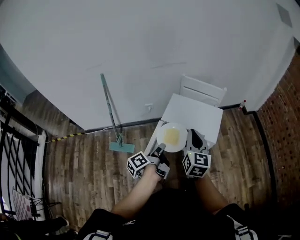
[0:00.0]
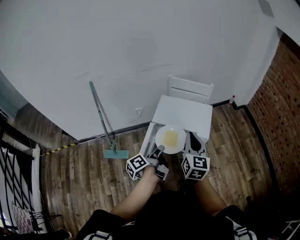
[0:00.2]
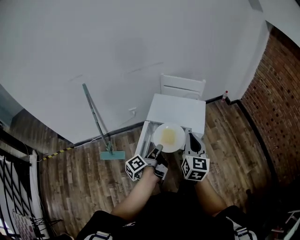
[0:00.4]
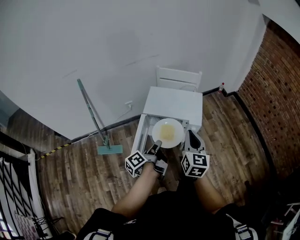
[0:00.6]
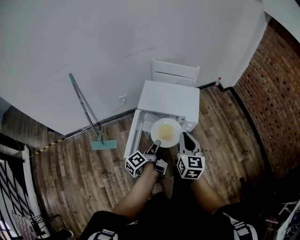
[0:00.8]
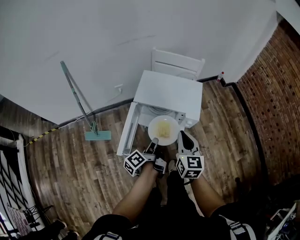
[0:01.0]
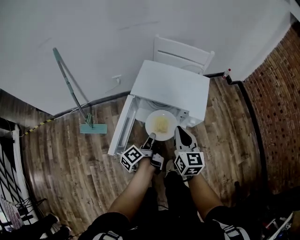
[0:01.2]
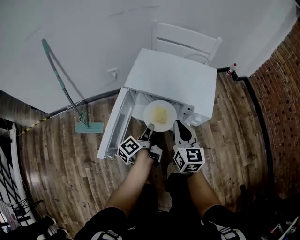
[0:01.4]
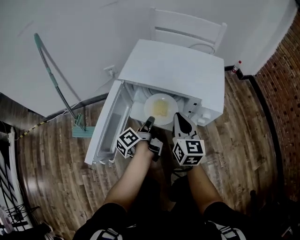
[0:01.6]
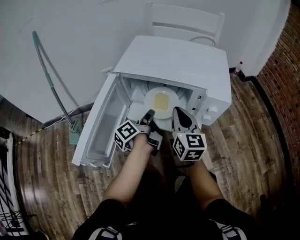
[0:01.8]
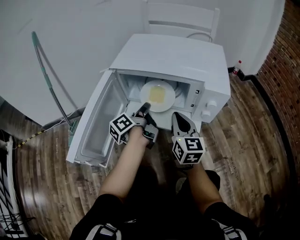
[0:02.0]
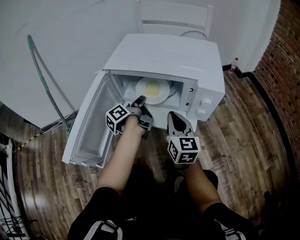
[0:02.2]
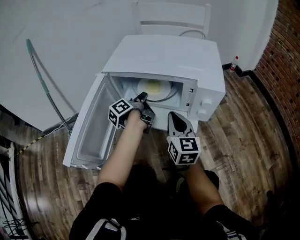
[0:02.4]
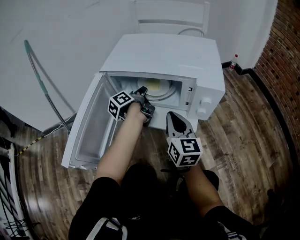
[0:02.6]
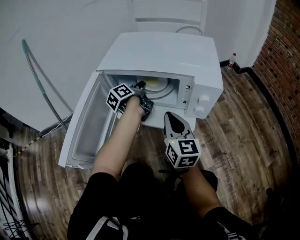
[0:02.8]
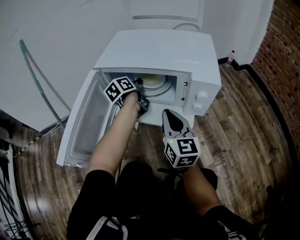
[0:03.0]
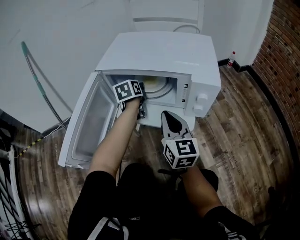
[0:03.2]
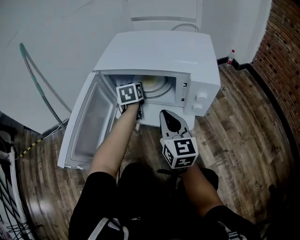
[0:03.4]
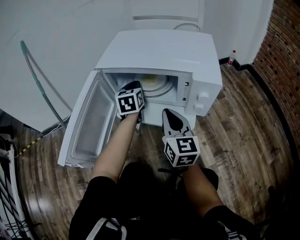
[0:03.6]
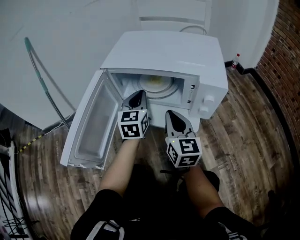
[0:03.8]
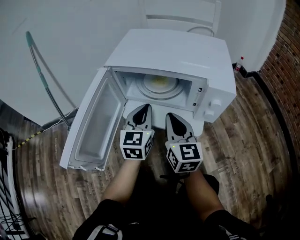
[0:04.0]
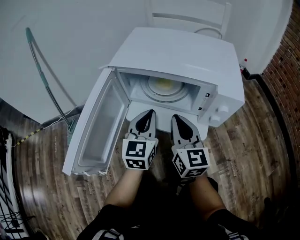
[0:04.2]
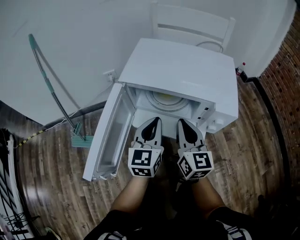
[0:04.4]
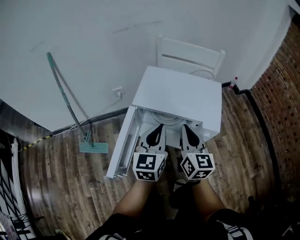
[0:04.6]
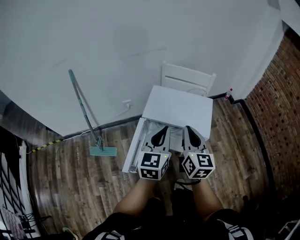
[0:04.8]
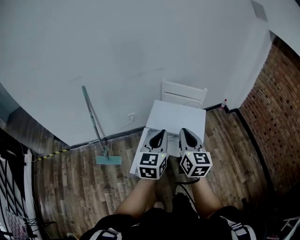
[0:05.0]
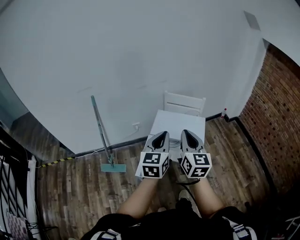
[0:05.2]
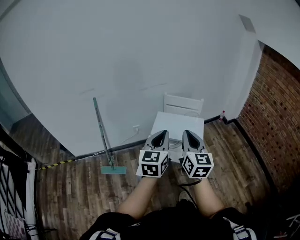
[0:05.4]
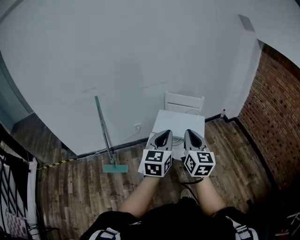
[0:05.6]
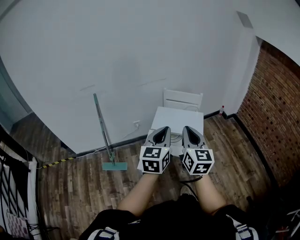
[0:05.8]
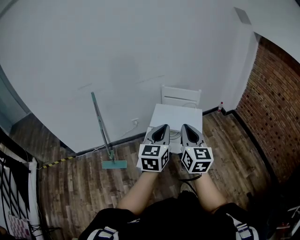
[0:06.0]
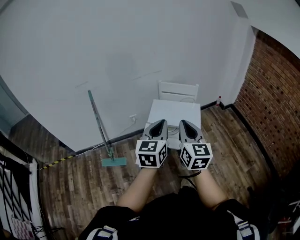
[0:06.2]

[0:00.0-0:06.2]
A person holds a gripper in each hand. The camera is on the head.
0:00.0 to 0:01.6: The two grippers go about 40 cm downward.
0:01.6 to 0:03.2: The right gripper moves downward, roughly 5 cm; the left gripper moves forward, about 20 cm, rotates around the line of its fingers by approximately 60 degrees, clockwise from behind, and opens.
0:03.2 to 0:04.6: The right gripper heads upward, covering some 20 cm. The left gripper heads upward and backward, covering approximately 35 cm, turns by roughly 30 degrees, and closes its fingers.
0:04.6 to 0:06.2: Both grippers travel together upward and backward, some 40 cm.

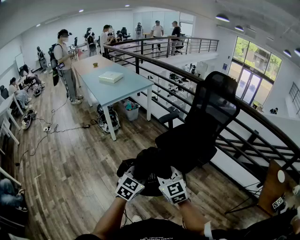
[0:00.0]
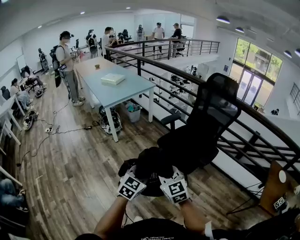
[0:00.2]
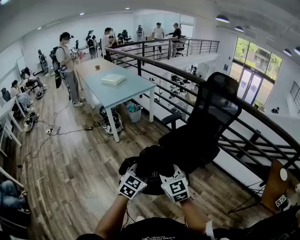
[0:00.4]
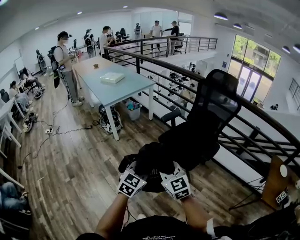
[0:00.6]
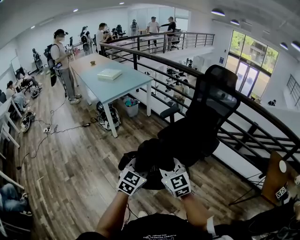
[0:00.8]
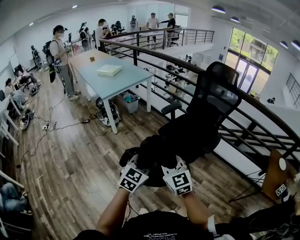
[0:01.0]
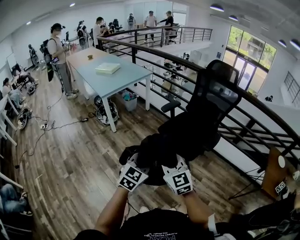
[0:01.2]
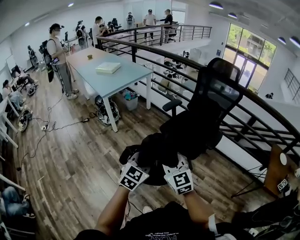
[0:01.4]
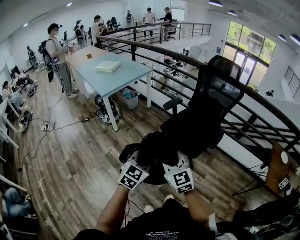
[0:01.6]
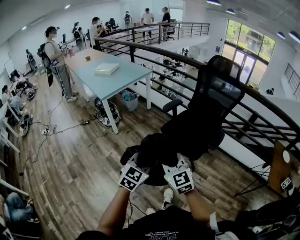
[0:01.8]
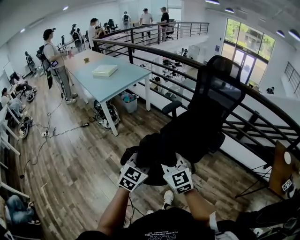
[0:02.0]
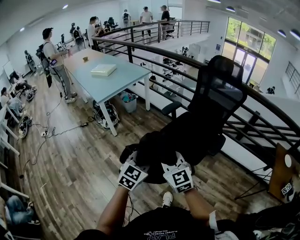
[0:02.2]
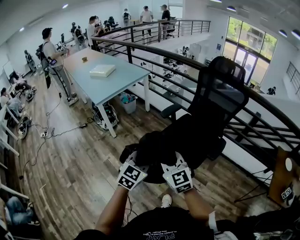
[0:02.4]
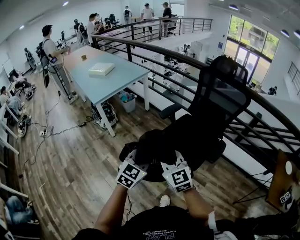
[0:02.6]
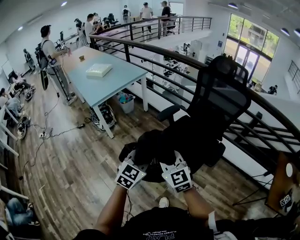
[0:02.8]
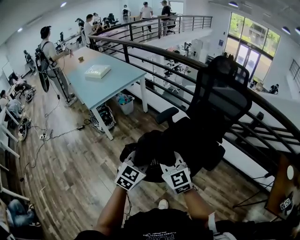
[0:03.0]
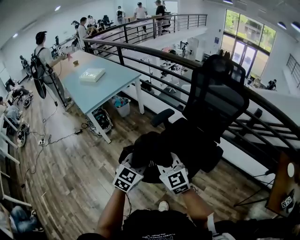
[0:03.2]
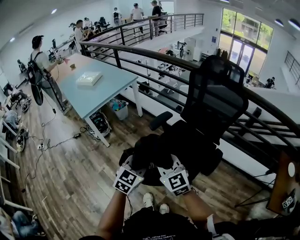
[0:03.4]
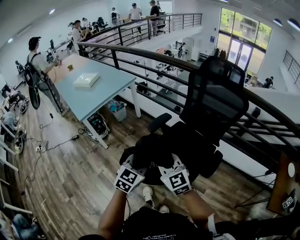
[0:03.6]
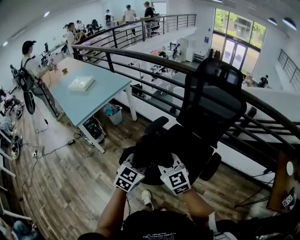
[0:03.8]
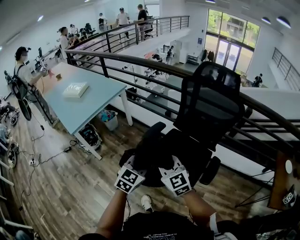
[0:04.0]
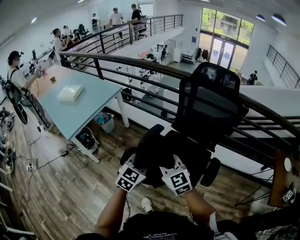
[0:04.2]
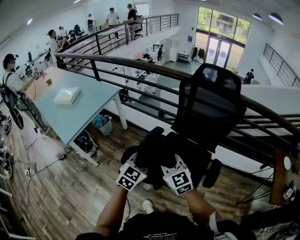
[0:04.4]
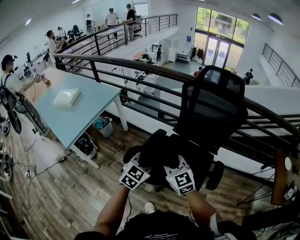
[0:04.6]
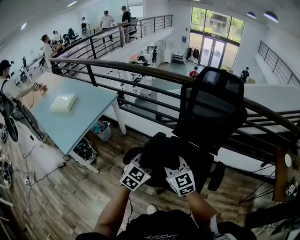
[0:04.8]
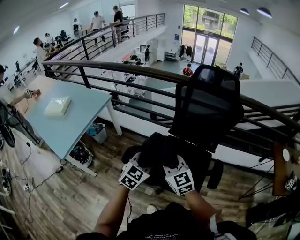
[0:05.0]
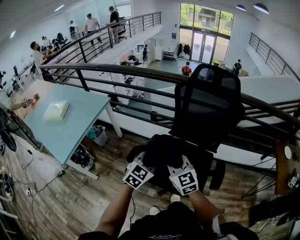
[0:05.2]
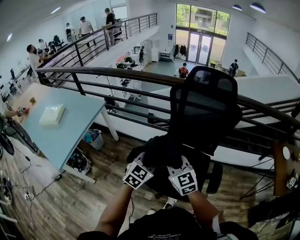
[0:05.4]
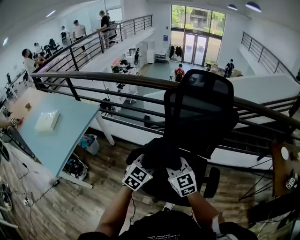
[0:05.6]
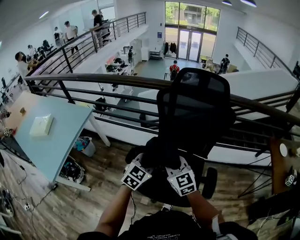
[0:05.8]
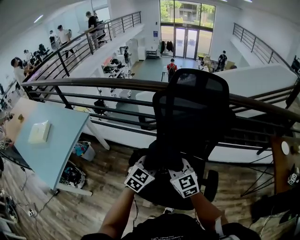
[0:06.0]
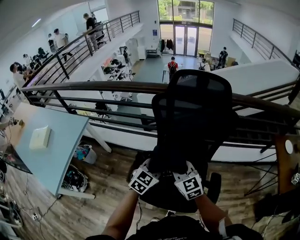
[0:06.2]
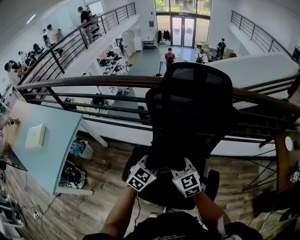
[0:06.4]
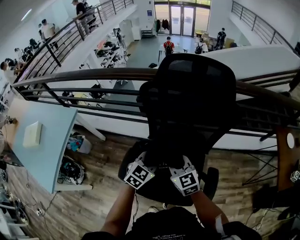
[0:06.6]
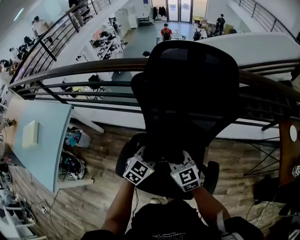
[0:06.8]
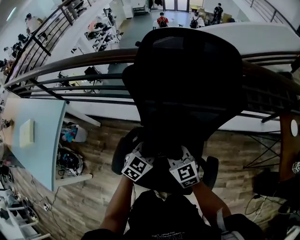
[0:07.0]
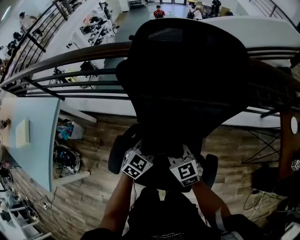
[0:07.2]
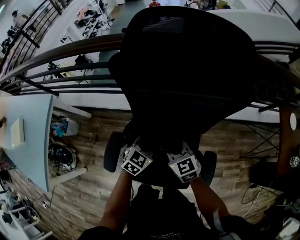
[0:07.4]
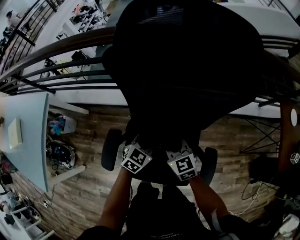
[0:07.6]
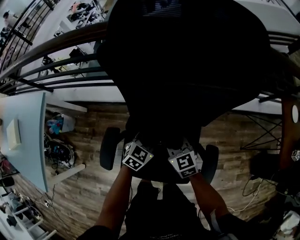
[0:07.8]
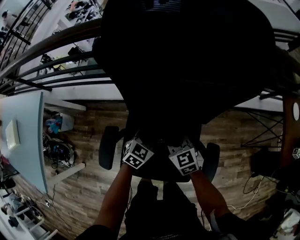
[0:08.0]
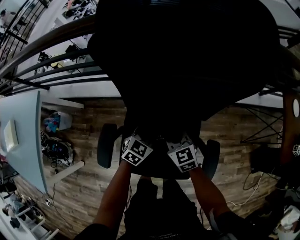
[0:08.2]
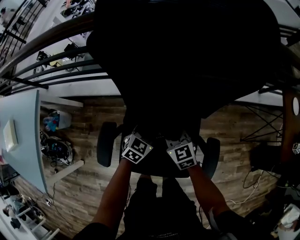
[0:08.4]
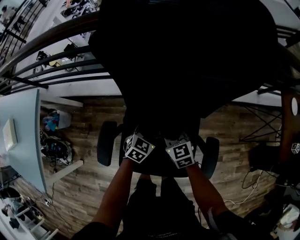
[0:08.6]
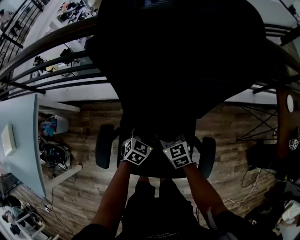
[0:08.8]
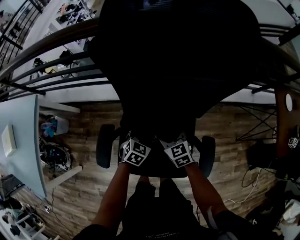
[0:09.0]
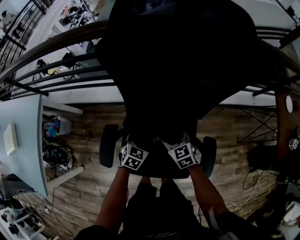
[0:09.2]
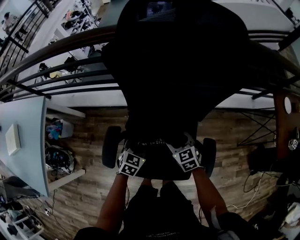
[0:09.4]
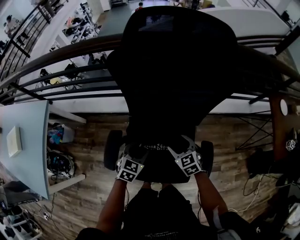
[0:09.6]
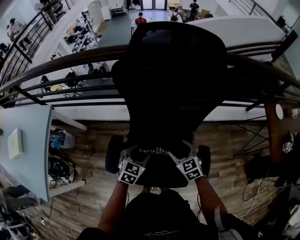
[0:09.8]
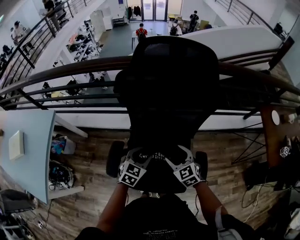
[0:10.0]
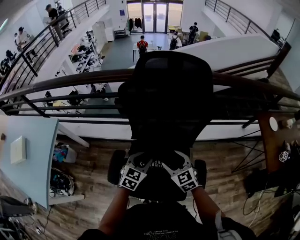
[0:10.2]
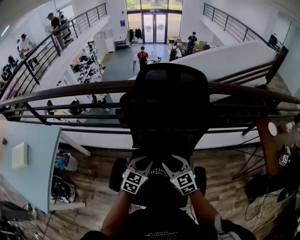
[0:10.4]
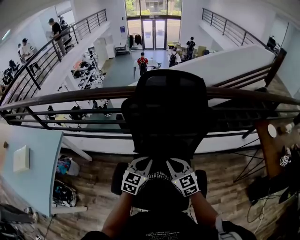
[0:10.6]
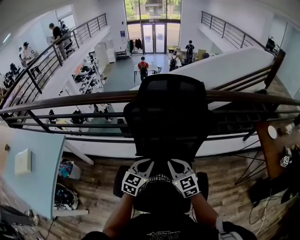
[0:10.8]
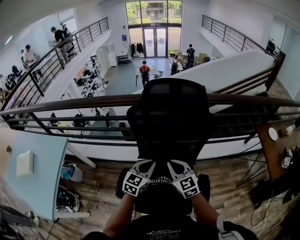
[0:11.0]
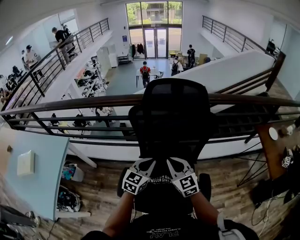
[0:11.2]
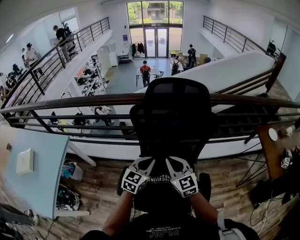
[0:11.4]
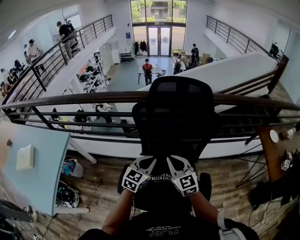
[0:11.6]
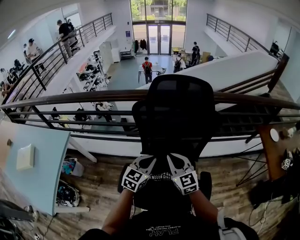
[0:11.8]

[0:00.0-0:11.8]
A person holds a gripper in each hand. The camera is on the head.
0:00.0 to 0:01.4: Both grippers move to the left, about 5 cm.
0:01.4 to 0:03.0: Both grippers move forward, roughly 25 cm.
0:03.0 to 0:04.4: The two grippers go about 20 cm forward.
0:04.4 to 0:06.0: The right gripper is displaced forward and to the right by about 25 cm. Meanwhile the left gripper is displaced forward by some 20 cm.
0:06.0 to 0:07.4: Both grippers travel together downward, forward and to the right, about 25 cm.
0:07.4 to 0:08.8: The two grippers go roughly 10 cm downward. The right gripper opens up.
0:08.8 to 0:10.4: The grippers both shift upward by approximately 20 cm. The left gripper changes its angle by about 20 degrees, and opens, then closes again.
0:10.4 to 0:11.8: The grippers both shift upward by some 5 cm. The right gripper closes its fingers.

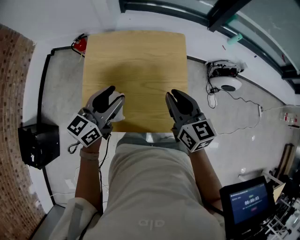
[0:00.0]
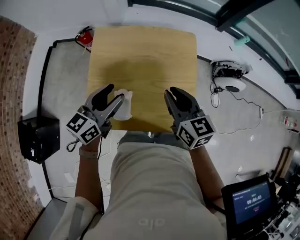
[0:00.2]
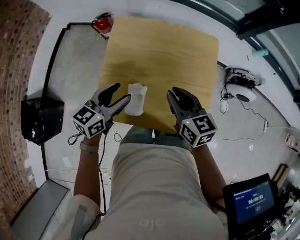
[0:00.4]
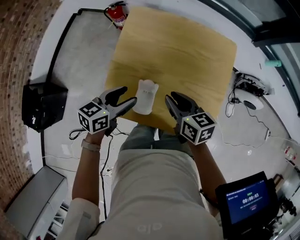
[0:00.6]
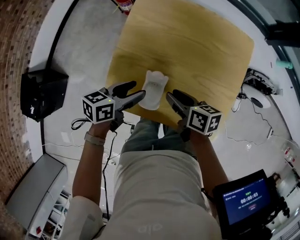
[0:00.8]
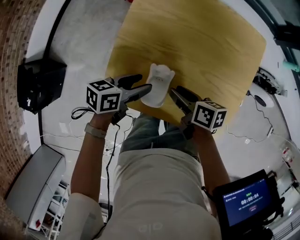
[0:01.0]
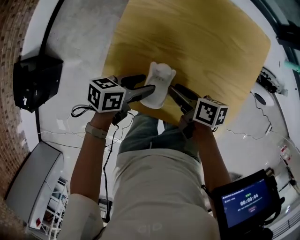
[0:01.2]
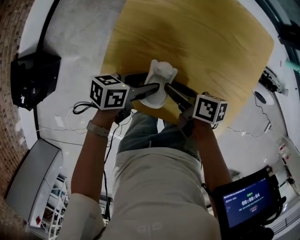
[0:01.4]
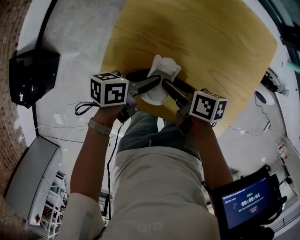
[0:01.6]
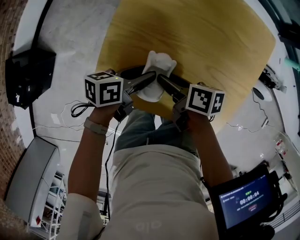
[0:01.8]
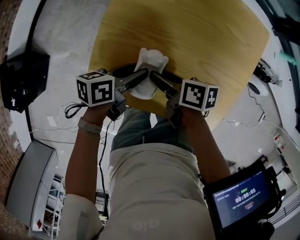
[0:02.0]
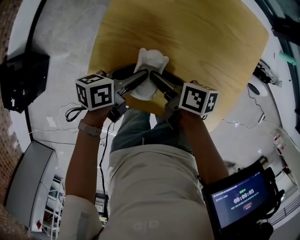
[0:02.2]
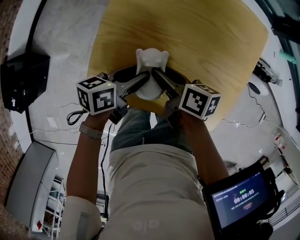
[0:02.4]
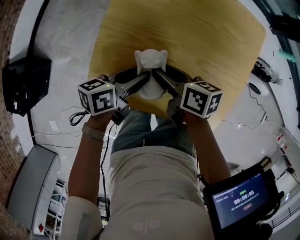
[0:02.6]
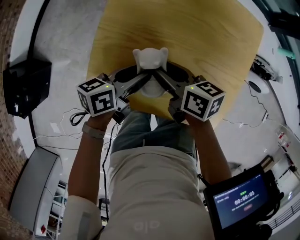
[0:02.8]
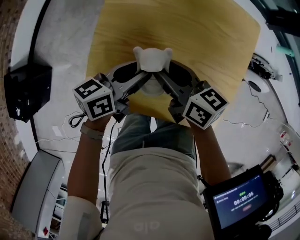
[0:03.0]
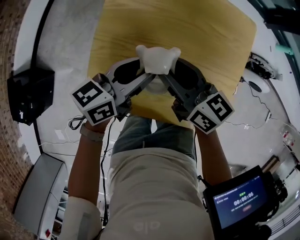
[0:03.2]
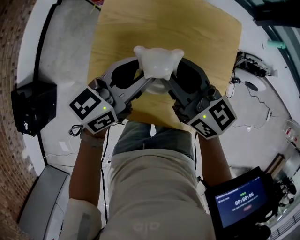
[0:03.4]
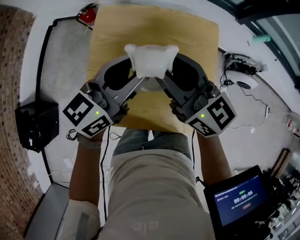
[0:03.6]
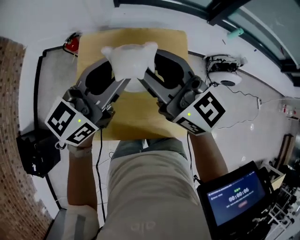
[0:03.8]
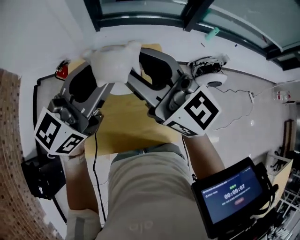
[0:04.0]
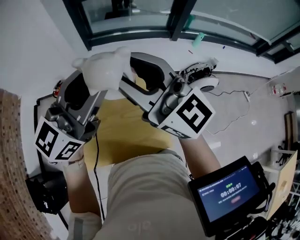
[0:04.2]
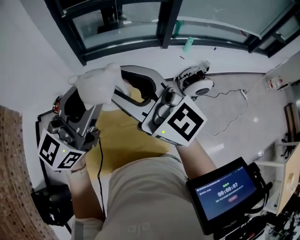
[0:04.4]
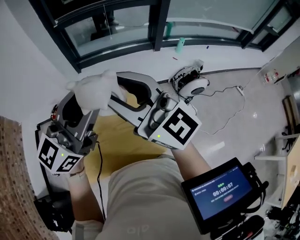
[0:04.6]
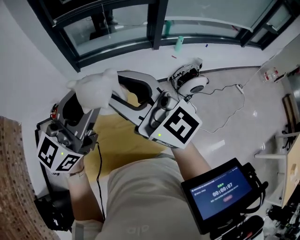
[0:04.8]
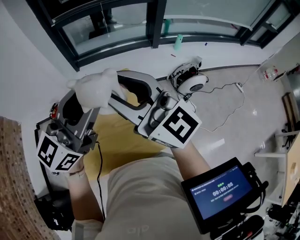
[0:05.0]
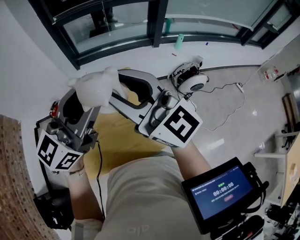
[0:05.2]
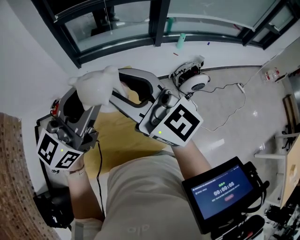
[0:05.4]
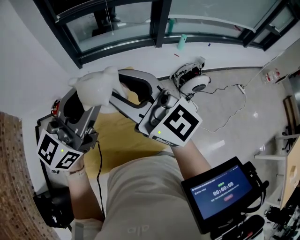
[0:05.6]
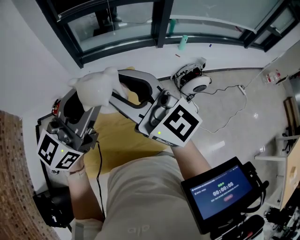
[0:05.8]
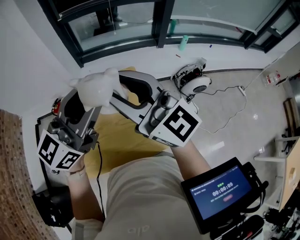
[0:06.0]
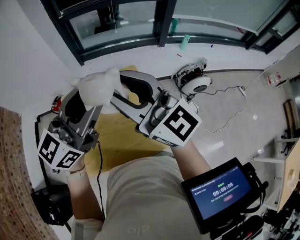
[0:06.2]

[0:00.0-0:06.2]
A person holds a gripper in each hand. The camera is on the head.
0:00.0 to 0:01.6: Both grippers move downward, approximately 25 cm. The left gripper rotates around the line of its fingers by about 50 degrees, counterclockwise from behind, while the right gripper swivels approximately 60 degrees, and opens its fingers.
0:01.6 to 0:03.2: Both grippers travel together upward, some 15 cm. The left gripper changes its angle by some 30 degrees; the right gripper turns by about 50 degrees.
0:03.2 to 0:04.6: The grippers both shift upward and to the right by approximately 50 cm. The right gripper angles its fingers upward, by about 30 degrees. Meanwhile the left gripper rolls clockwise, seen from behind, by approximately 40 degrees.
0:04.6 to 0:06.2: Both grippers stay about where they are.
